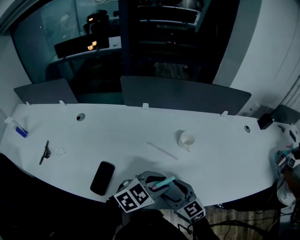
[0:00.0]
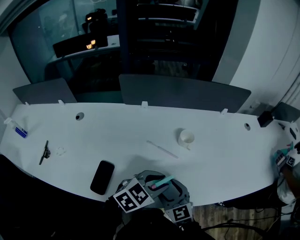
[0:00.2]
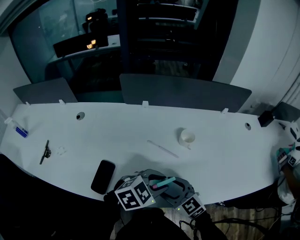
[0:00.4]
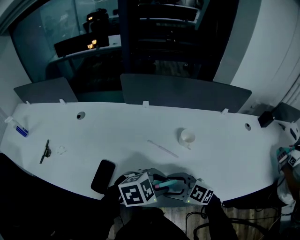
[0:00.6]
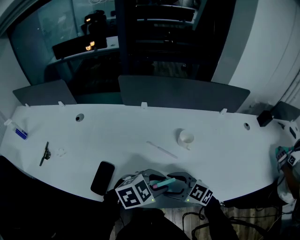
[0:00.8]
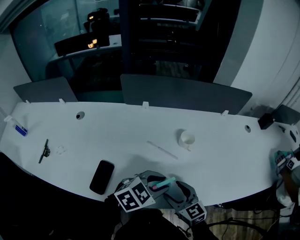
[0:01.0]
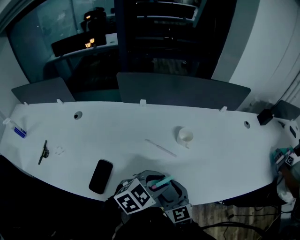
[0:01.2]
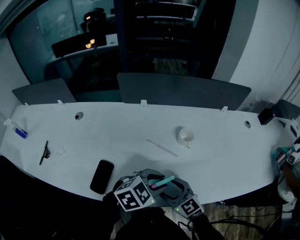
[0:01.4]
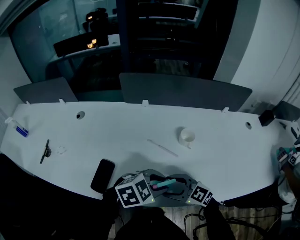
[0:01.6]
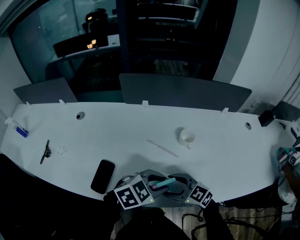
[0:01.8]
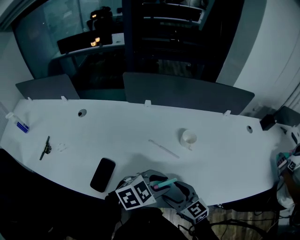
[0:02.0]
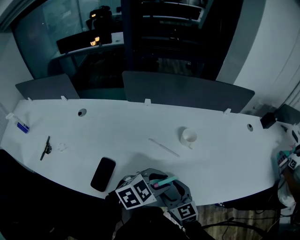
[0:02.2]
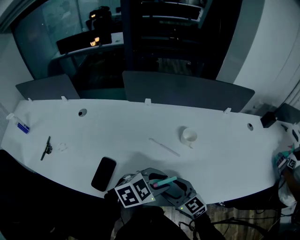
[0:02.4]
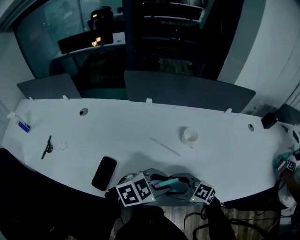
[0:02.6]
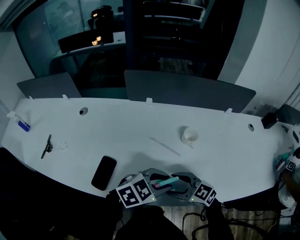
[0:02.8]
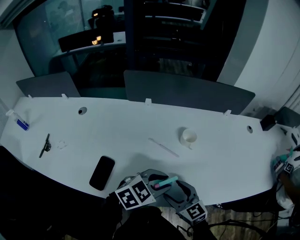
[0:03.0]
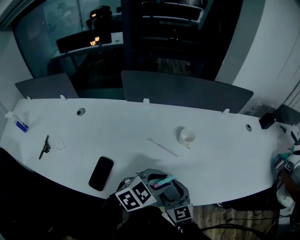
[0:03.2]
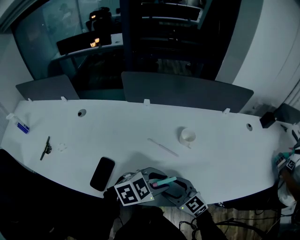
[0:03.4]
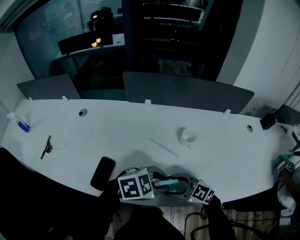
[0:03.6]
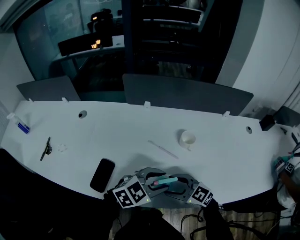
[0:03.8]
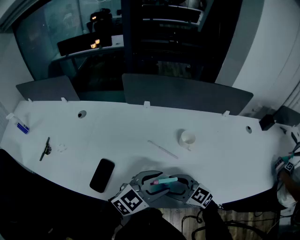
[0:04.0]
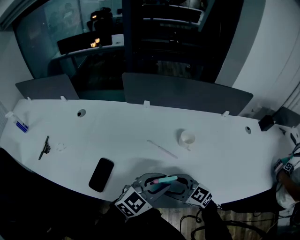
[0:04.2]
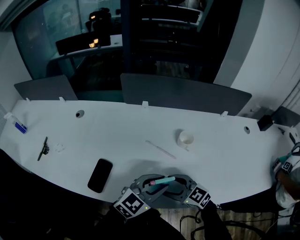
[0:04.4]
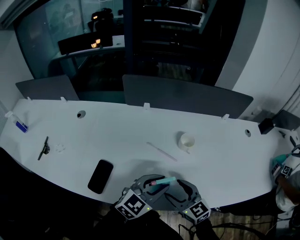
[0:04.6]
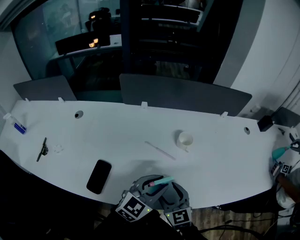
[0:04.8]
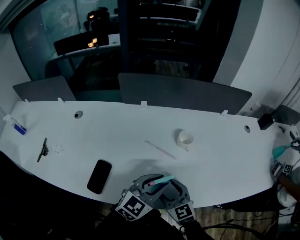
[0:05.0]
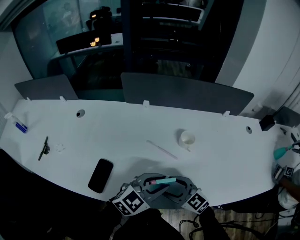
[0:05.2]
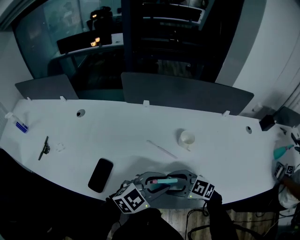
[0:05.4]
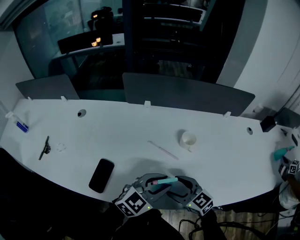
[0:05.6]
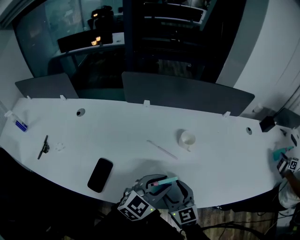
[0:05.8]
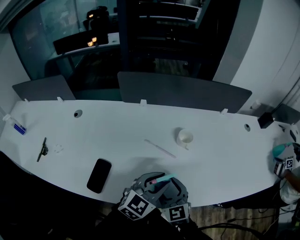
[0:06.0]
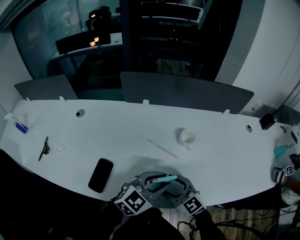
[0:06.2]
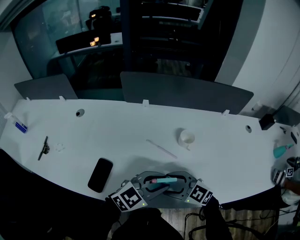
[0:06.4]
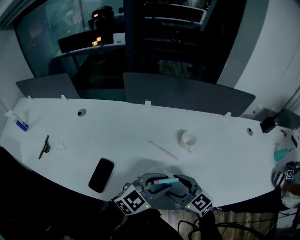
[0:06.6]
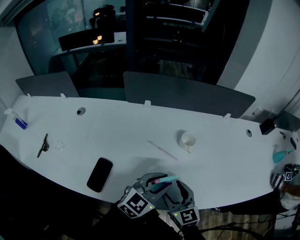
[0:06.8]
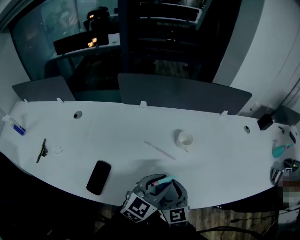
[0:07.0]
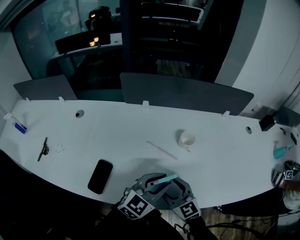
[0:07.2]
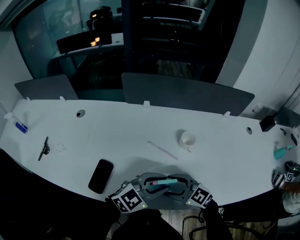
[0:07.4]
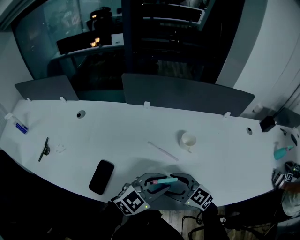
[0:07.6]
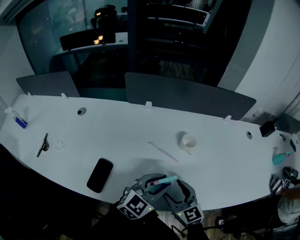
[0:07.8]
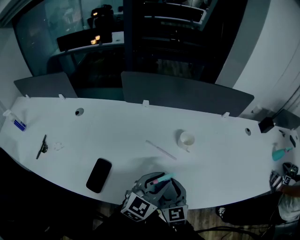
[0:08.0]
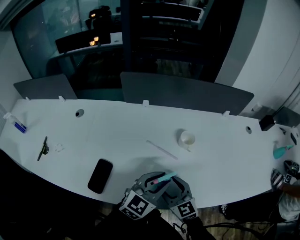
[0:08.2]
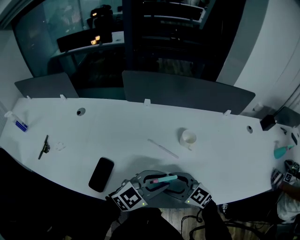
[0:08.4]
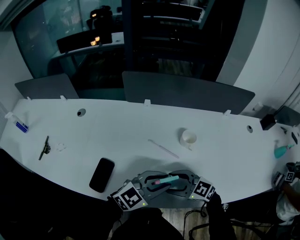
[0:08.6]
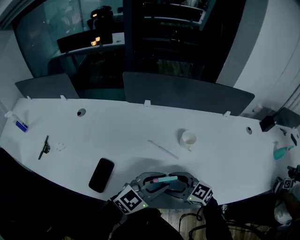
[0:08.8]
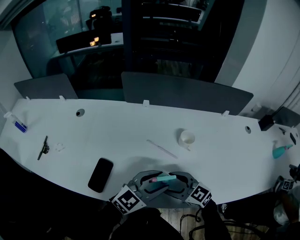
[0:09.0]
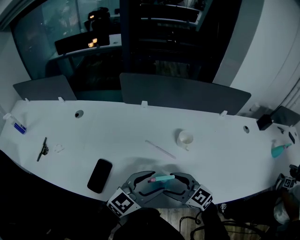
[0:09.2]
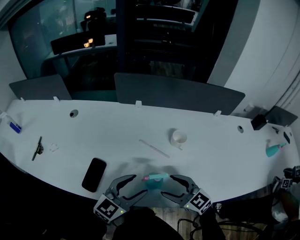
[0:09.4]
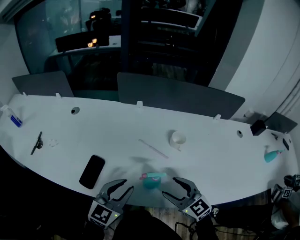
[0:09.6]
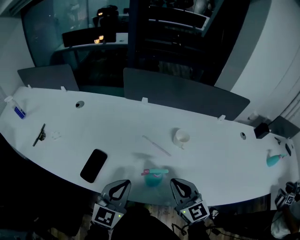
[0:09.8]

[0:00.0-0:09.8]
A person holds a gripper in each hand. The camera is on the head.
0:01.4 to 0:02.8: The right gripper turns by approximately 20 degrees.
0:02.8 to 0:04.2: The left gripper rotates approximately 20 degrees.
0:05.6 to 0:07.0: The right gripper turns by about 30 degrees.
0:07.0 to 0:08.4: The right gripper swivels approximately 40 degrees.
0:08.4 to 0:09.8: The left gripper ends up some 10 cm from where it was, changes its angle by some 40 degrees, and closes up, while the right gripper is displaced upward by approximately 10 cm, rotates approximately 30 degrees, and closes up.

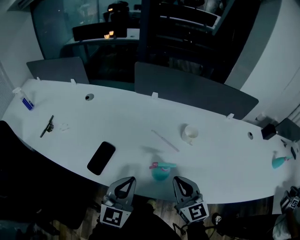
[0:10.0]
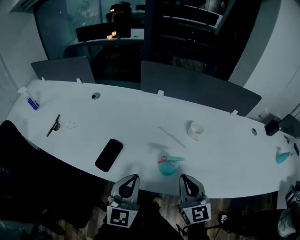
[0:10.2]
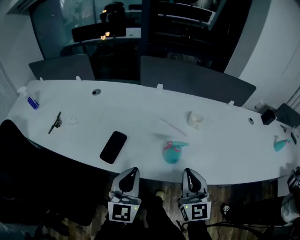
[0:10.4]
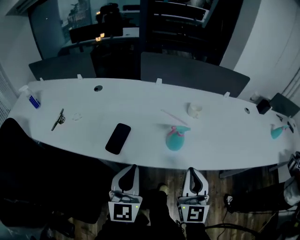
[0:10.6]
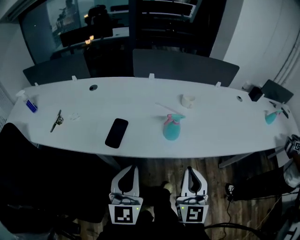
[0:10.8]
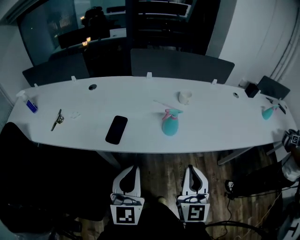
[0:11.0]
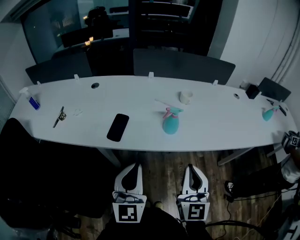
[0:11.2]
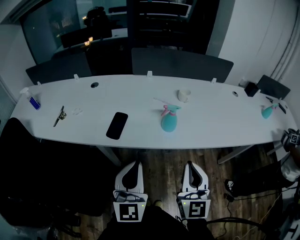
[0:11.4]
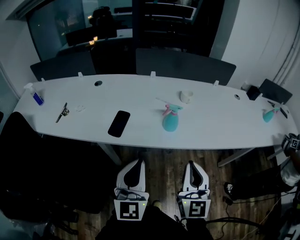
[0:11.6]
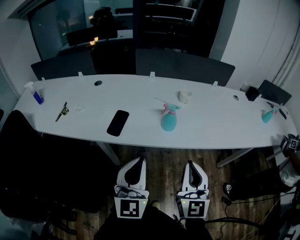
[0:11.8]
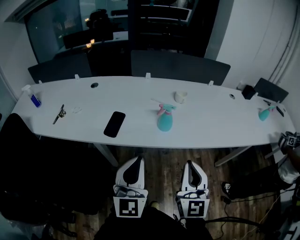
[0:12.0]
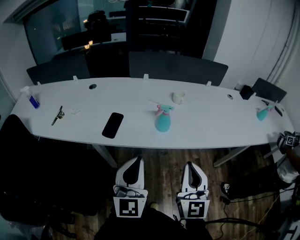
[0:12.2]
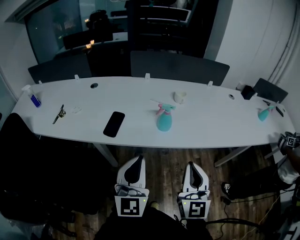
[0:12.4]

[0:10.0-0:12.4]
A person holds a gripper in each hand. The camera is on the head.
0:10.0 to 0:11.2: The two grippers go about 20 cm backward. The right gripper turns by about 30 degrees.
0:11.2 to 0:12.4: The left gripper changes place by about 5 cm.

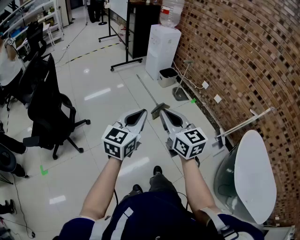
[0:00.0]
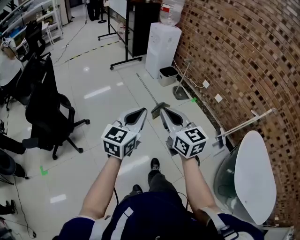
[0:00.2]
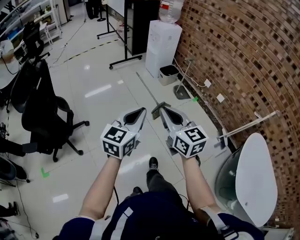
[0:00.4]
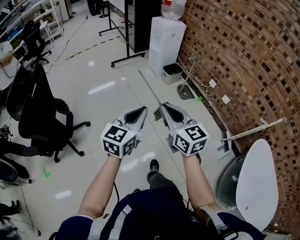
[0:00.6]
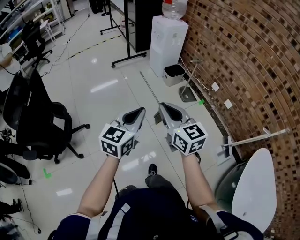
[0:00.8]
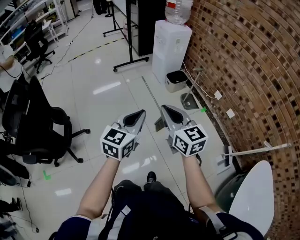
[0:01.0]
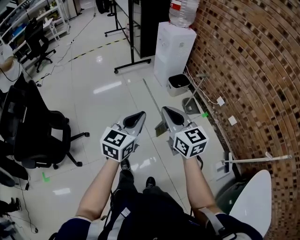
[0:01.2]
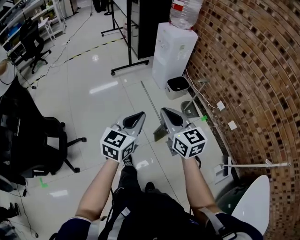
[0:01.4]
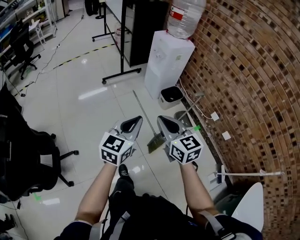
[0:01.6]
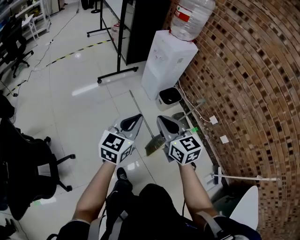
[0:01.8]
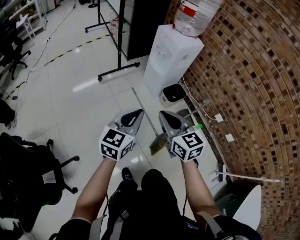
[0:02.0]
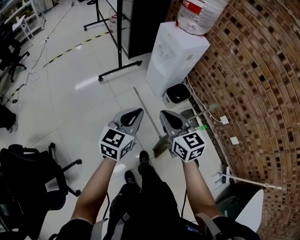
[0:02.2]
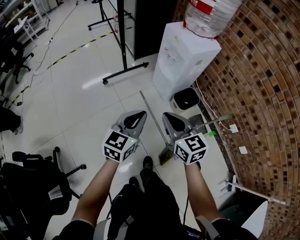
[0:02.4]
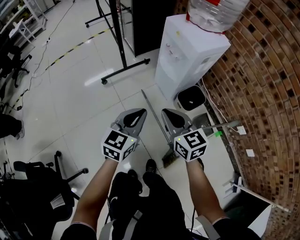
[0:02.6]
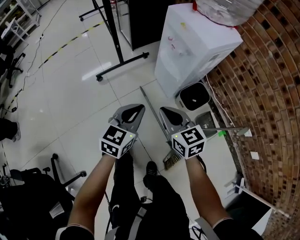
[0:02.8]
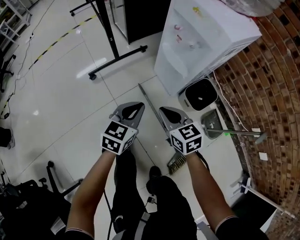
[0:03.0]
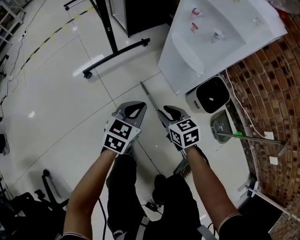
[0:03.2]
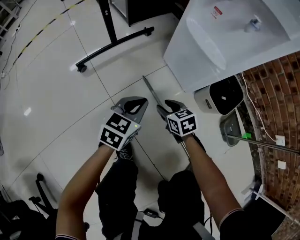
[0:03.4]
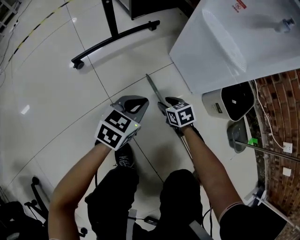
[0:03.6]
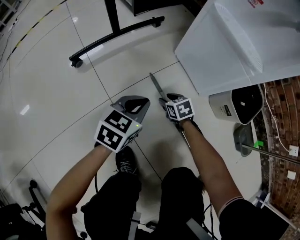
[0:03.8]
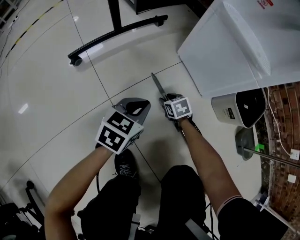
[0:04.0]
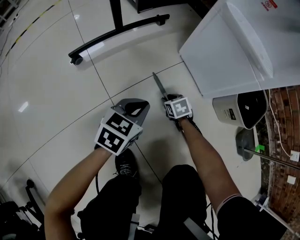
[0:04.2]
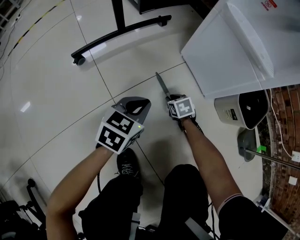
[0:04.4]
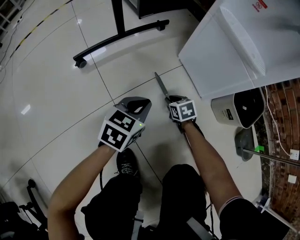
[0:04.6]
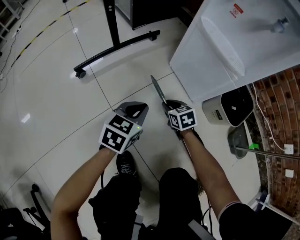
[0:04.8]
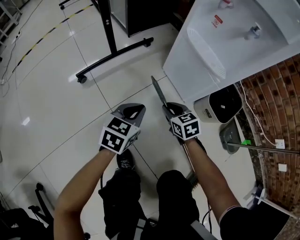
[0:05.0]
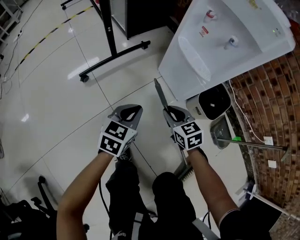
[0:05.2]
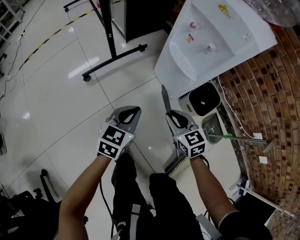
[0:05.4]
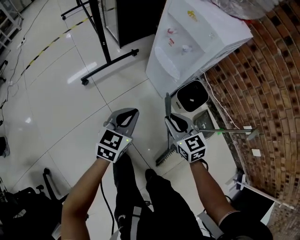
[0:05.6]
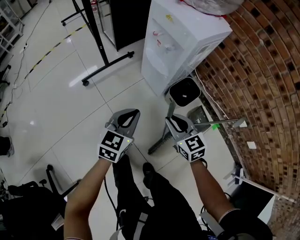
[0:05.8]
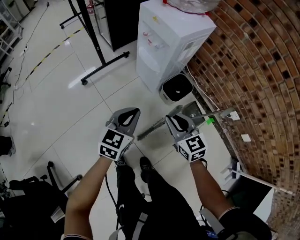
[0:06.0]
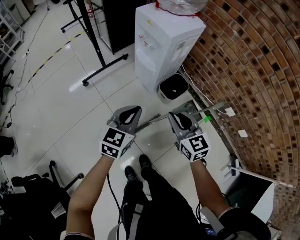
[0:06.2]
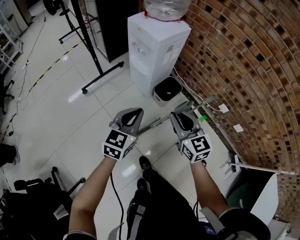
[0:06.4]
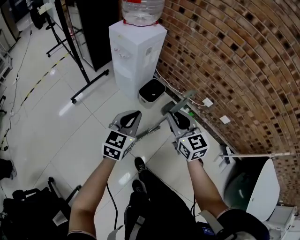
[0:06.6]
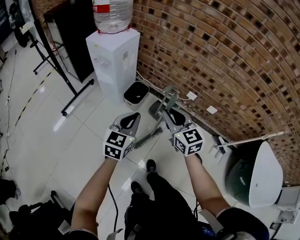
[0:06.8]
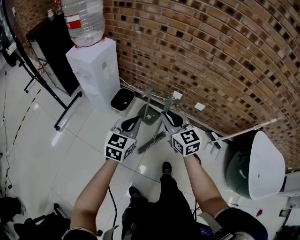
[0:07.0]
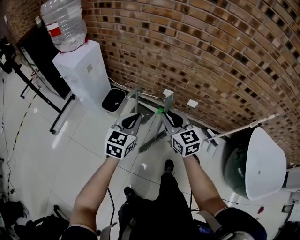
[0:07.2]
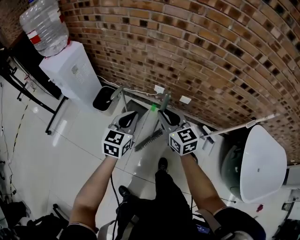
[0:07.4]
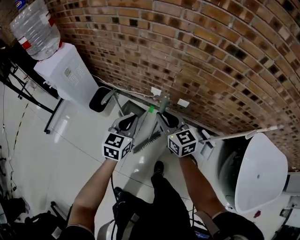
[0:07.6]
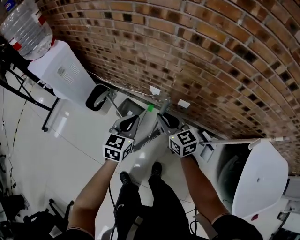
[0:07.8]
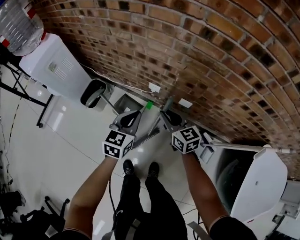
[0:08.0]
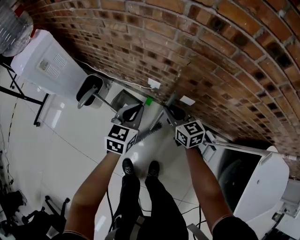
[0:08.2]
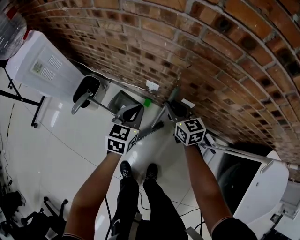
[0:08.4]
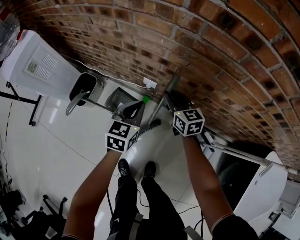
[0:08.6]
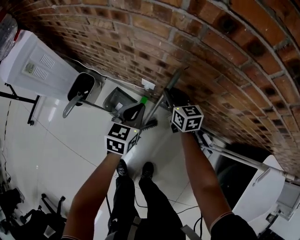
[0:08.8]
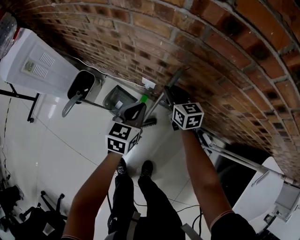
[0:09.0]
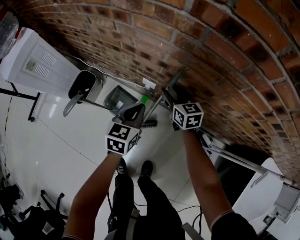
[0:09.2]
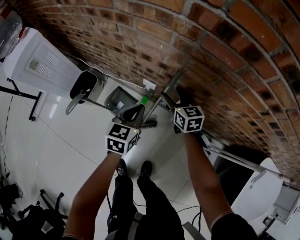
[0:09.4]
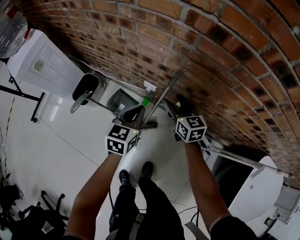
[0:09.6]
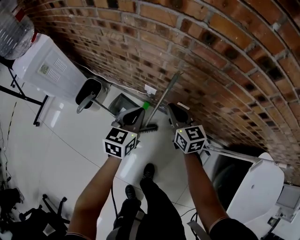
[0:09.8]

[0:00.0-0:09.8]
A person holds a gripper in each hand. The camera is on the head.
0:00.0 to 0:01.4: Both grippers travel together forward, about 40 cm.
0:01.4 to 0:02.8: Both grippers are carried forward, some 50 cm. The two grippers go some 25 cm downward.
0:02.8 to 0:04.2: The two grippers go some 60 cm downward. The right gripper angles its fingers downward, by approximately 40 degrees, and opens its fingers.
0:04.2 to 0:05.6: The grippers both shift upward by some 50 cm. The right gripper angles its fingers upward, by approximately 30 degrees.
0:05.6 to 0:07.0: Both grippers are carried about 40 cm. The right gripper changes its angle by some 30 degrees; the left gripper changes its angle by some 30 degrees.
0:07.0 to 0:08.4: The right gripper goes some 50 cm to the right, downward and forward; the left gripper travels to the right, forward and downward by about 50 cm.
0:08.4 to 0:09.8: The grippers both shift upward by about 10 cm. The right gripper opens and closes again.

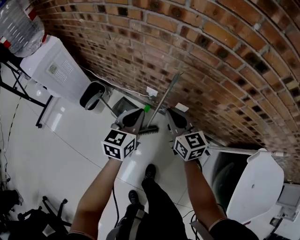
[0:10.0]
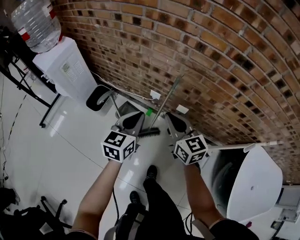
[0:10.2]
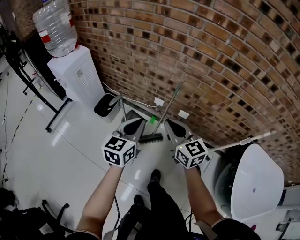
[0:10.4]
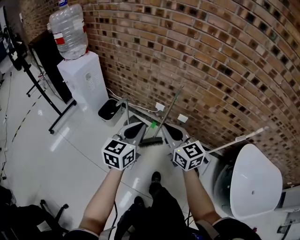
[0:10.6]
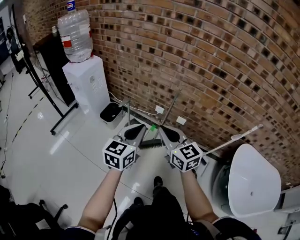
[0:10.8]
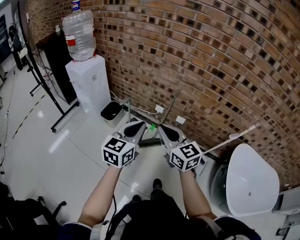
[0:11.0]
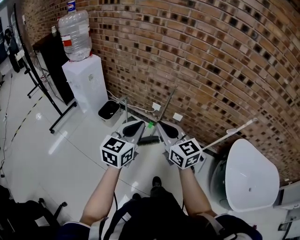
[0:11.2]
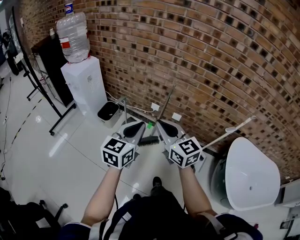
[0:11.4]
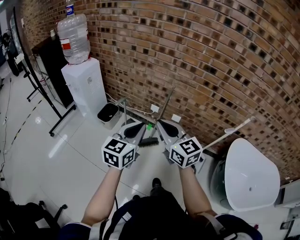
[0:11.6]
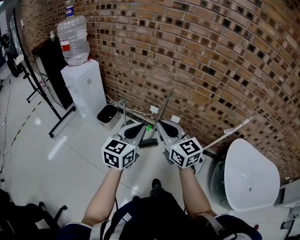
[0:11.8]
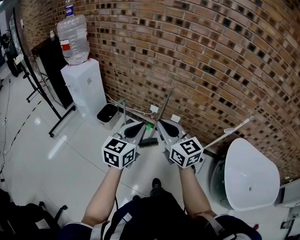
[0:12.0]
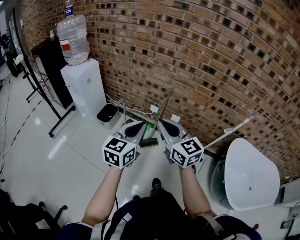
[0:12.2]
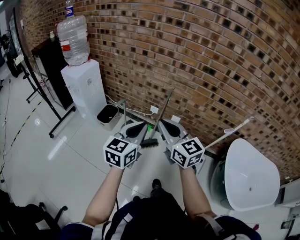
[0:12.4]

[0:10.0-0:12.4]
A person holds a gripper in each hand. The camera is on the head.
0:10.0 to 0:11.2: The left gripper is displaced backward and upward by roughly 35 cm; the right gripper heads backward, upward and to the left, covering approximately 40 cm.
0:11.2 to 0:12.4: The grippers stay close to where they were, moving slightly.
